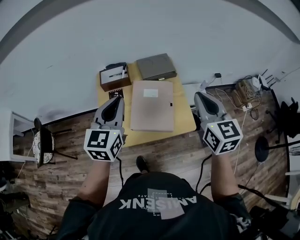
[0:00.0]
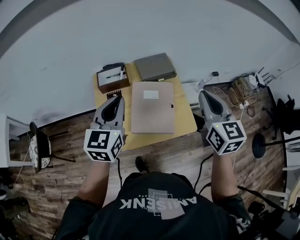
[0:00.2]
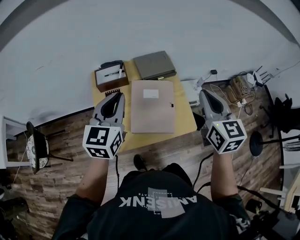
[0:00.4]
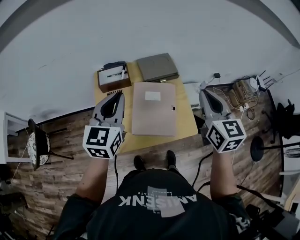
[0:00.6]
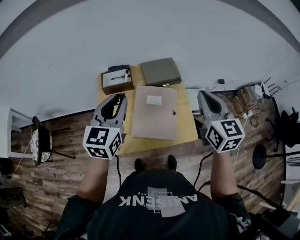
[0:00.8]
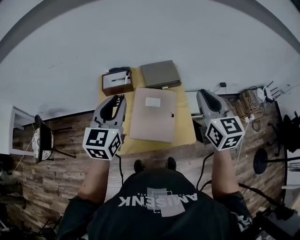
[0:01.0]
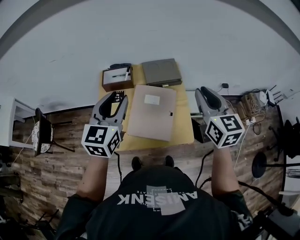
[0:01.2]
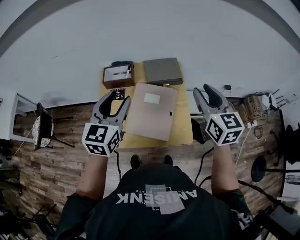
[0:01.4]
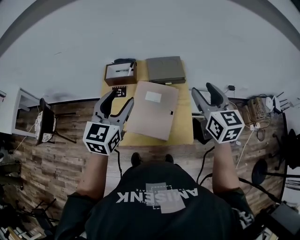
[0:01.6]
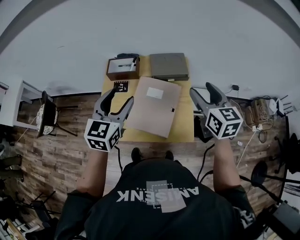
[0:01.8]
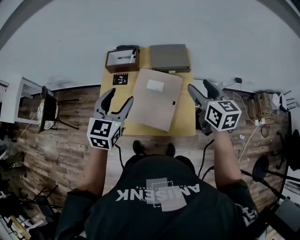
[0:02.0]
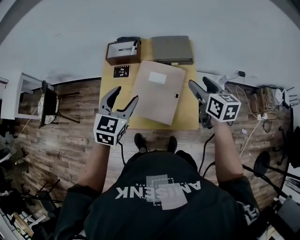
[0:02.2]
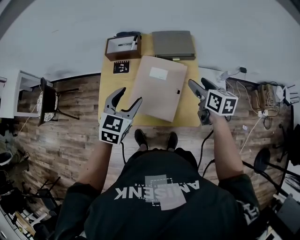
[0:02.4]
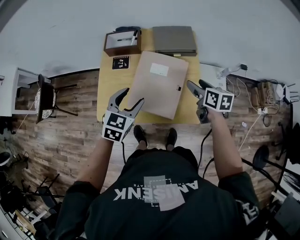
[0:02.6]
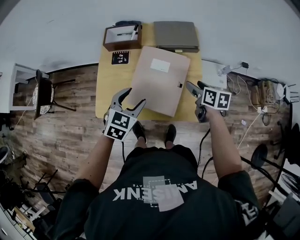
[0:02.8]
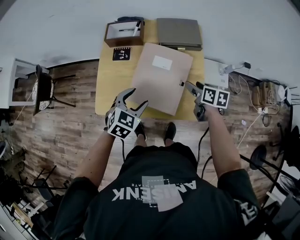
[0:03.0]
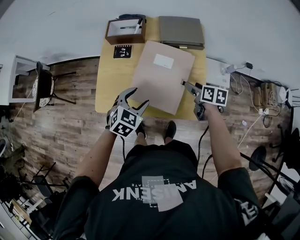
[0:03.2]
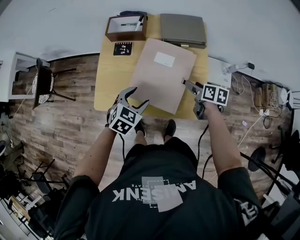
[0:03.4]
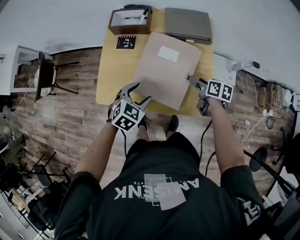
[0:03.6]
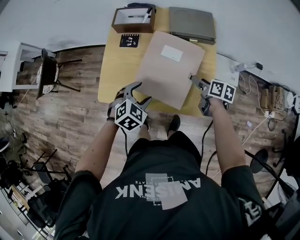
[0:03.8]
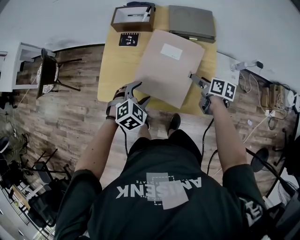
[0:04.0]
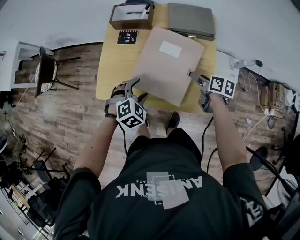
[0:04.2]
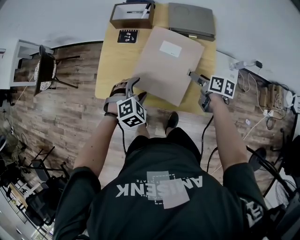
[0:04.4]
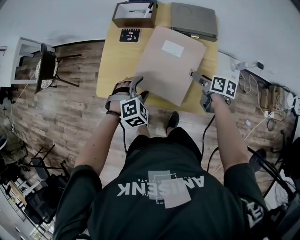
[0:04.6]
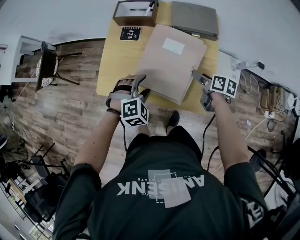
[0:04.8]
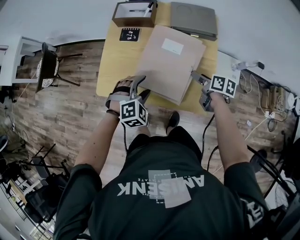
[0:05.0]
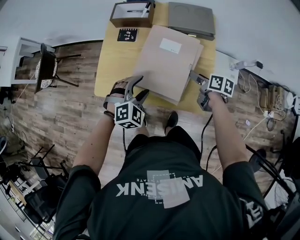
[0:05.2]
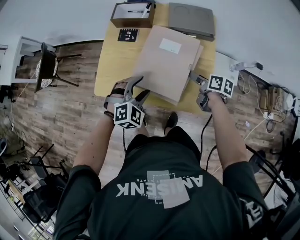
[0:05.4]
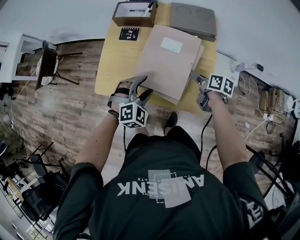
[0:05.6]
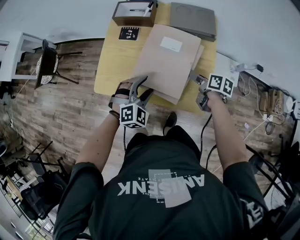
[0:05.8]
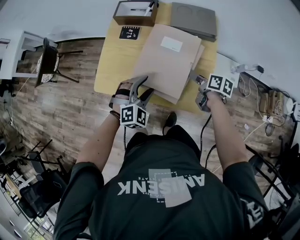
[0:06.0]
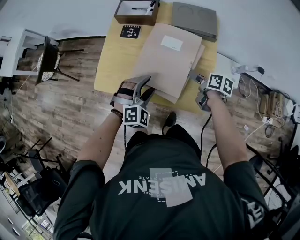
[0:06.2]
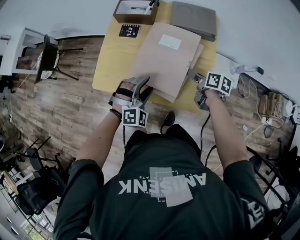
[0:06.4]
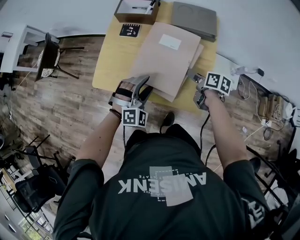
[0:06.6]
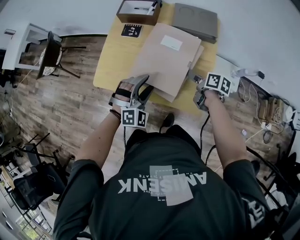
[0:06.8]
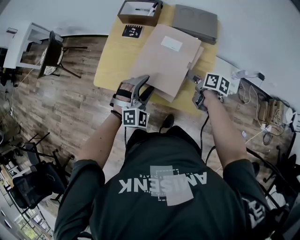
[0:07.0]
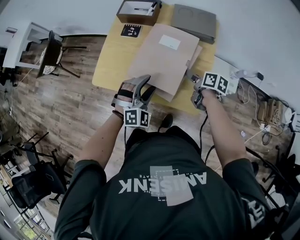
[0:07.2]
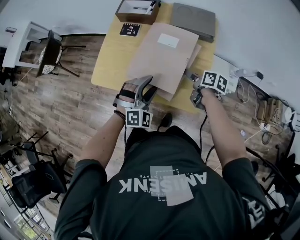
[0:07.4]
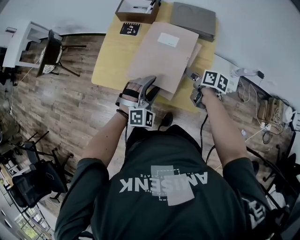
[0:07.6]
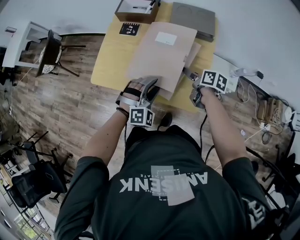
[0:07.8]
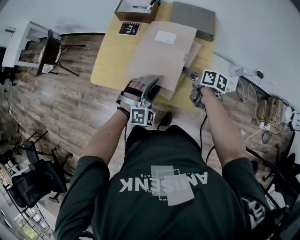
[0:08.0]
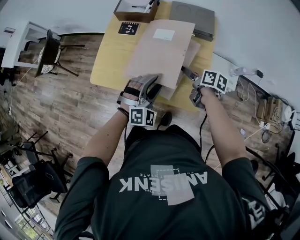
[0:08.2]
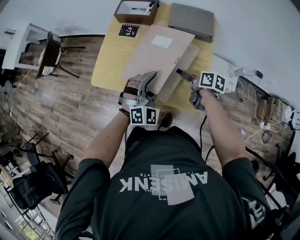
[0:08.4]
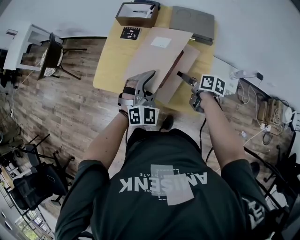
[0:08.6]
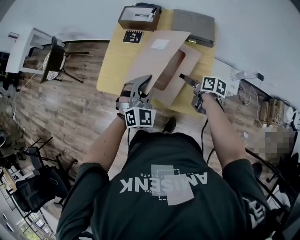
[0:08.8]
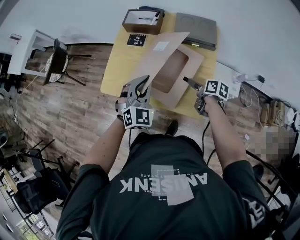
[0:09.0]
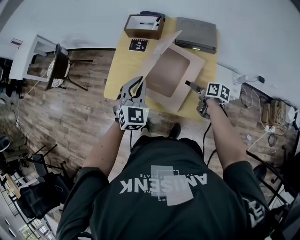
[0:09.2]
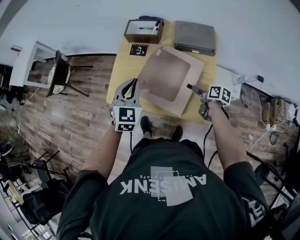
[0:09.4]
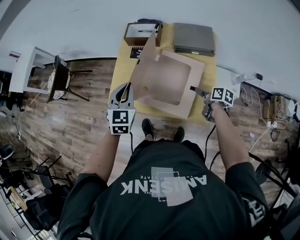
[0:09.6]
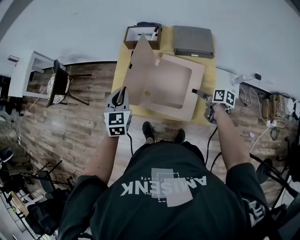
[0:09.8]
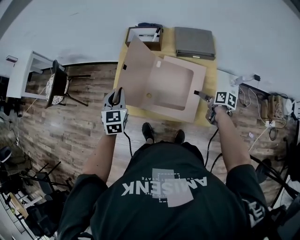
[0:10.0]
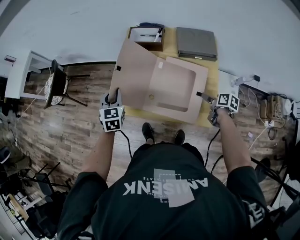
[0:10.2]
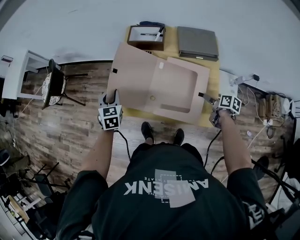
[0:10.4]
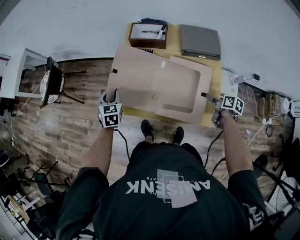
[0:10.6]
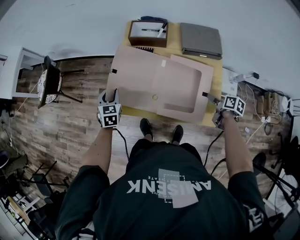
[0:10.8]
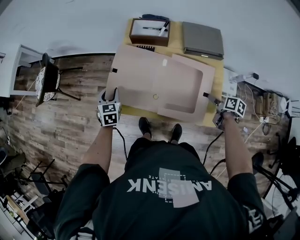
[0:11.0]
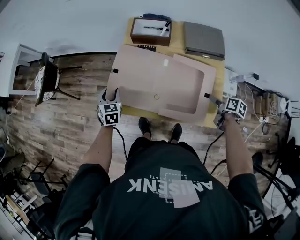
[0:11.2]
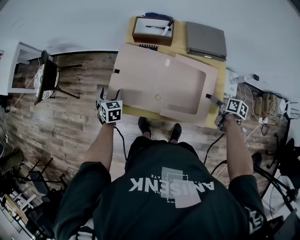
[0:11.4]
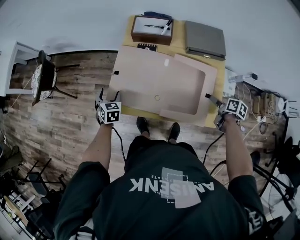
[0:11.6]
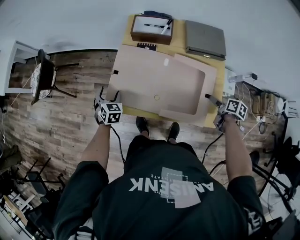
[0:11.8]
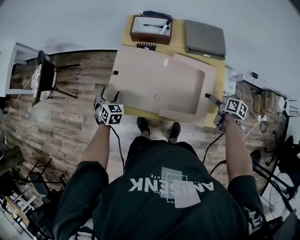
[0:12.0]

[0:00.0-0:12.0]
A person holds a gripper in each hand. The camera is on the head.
0:00.0 to 0:01.6: The right gripper goes about 10 cm forward, and opens. Meanwhile the left gripper changes place by approximately 5 cm, and opens up.
0:01.6 to 0:03.0: Both grippers travel together downward, approximately 25 cm. The left gripper angles its fingers downward, by some 30 degrees. Meanwhile the right gripper changes its angle by some 50 degrees.
0:03.0 to 0:04.4: Both grippers travel together downward, roughly 5 cm. The left gripper turns by about 30 degrees.
0:04.4 to 0:06.0: The left gripper moves roughly 5 cm.
0:06.0 to 0:07.6: The left gripper heads to the right, covering some 5 cm.
0:07.6 to 0:09.0: The left gripper heads upward, forward and to the left, covering roughly 10 cm, rotates some 30 degrees, and closes its fingers.
0:09.0 to 0:10.4: The left gripper shifts about 25 cm to the left and forward, and changes its angle by some 40 degrees.
0:10.4 to 0:12.0: The left gripper heads downward, covering some 10 cm, and opens its fingers.

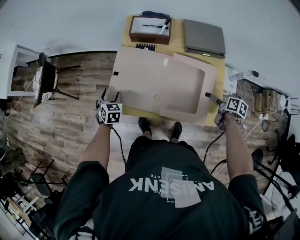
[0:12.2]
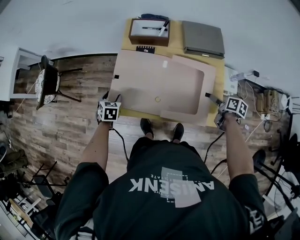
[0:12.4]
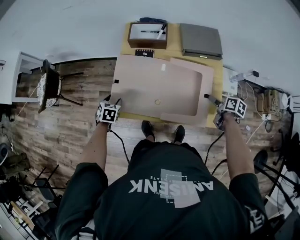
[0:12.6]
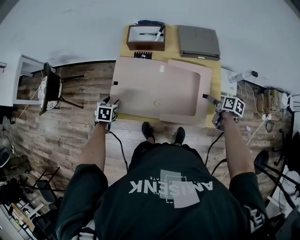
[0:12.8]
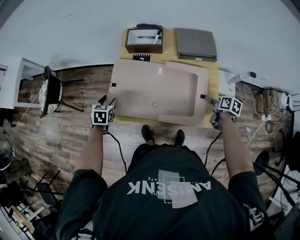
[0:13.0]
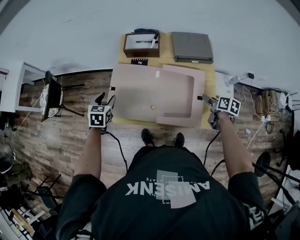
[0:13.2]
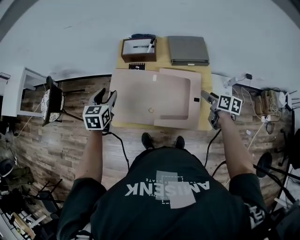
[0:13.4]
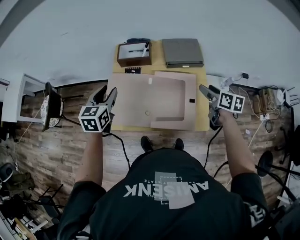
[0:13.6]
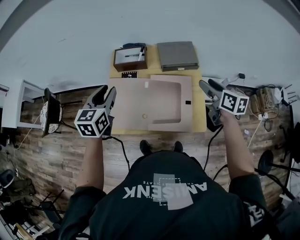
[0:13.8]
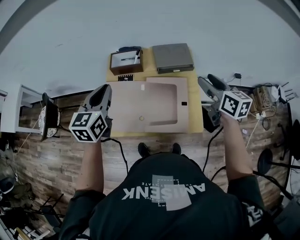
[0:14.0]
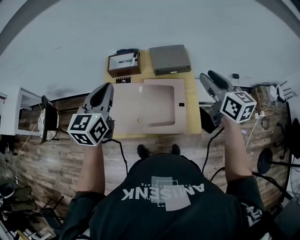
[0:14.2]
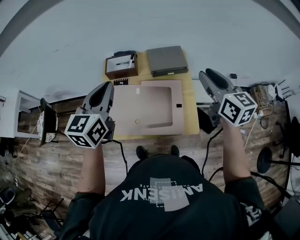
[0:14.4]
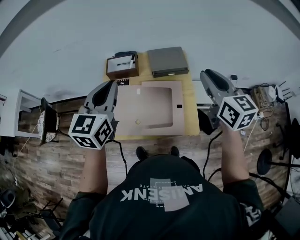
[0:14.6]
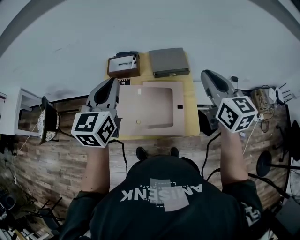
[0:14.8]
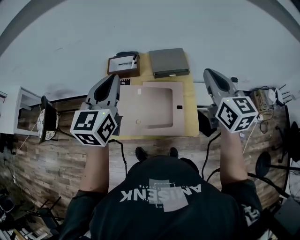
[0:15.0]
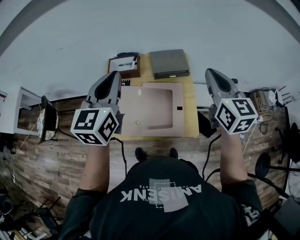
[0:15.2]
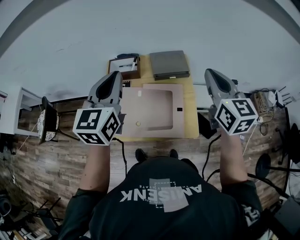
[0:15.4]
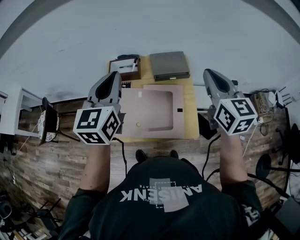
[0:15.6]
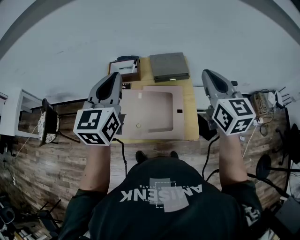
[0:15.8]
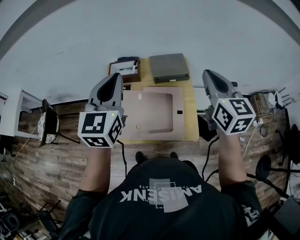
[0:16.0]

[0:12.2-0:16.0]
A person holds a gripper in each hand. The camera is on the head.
0:12.2 to 0:13.4: The left gripper moves upward and to the right, some 20 cm, and rotates about 20 degrees. The right gripper goes some 10 cm upward.
0:13.4 to 0:14.8: The right gripper goes approximately 30 cm upward, rotates about 50 degrees, and closes its fingers, while the left gripper shifts about 30 cm upward and to the right, swivels some 30 degrees, and closes up.
0:14.8 to 0:16.0: The grippers stay close to where they were, moving slightly.

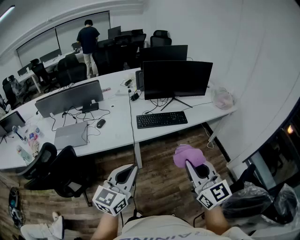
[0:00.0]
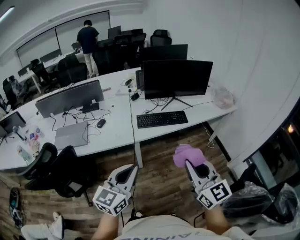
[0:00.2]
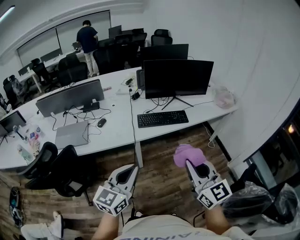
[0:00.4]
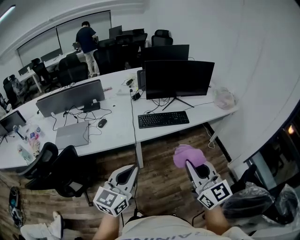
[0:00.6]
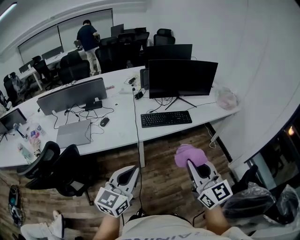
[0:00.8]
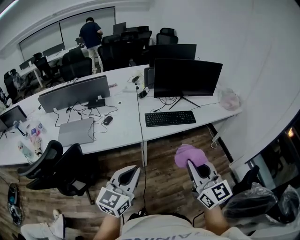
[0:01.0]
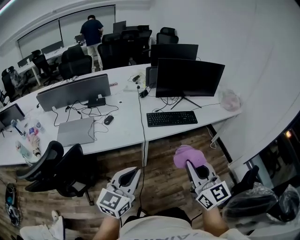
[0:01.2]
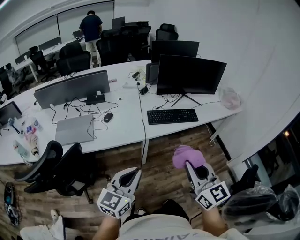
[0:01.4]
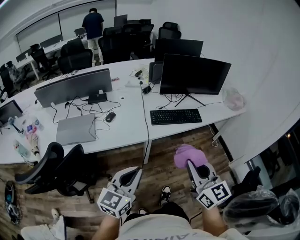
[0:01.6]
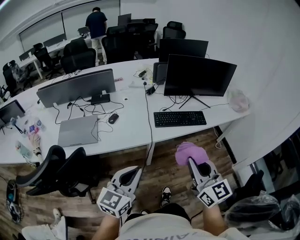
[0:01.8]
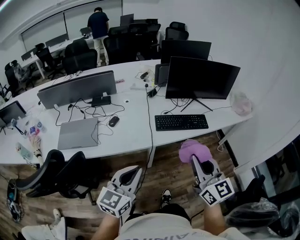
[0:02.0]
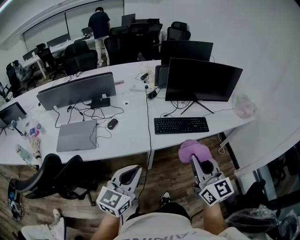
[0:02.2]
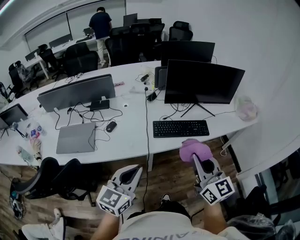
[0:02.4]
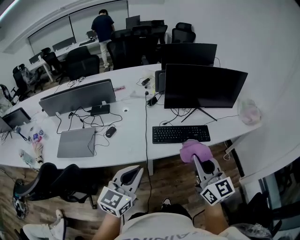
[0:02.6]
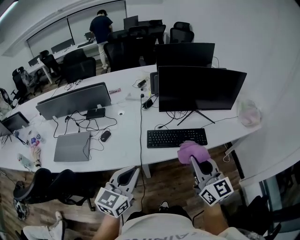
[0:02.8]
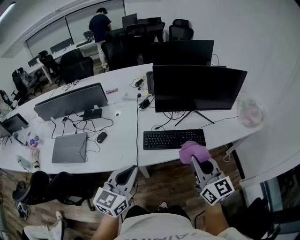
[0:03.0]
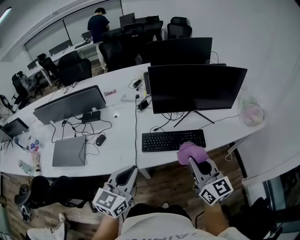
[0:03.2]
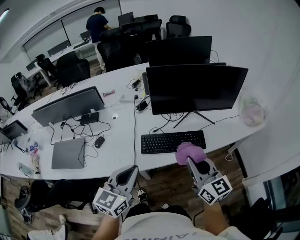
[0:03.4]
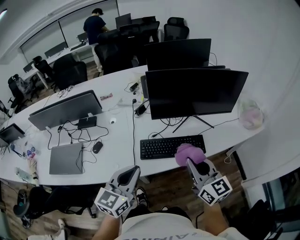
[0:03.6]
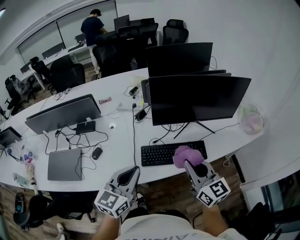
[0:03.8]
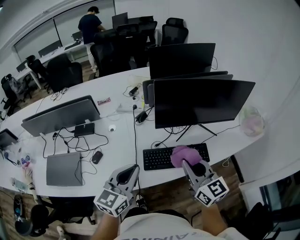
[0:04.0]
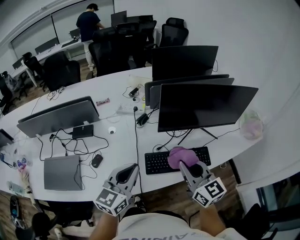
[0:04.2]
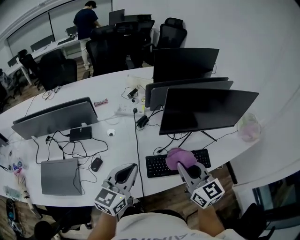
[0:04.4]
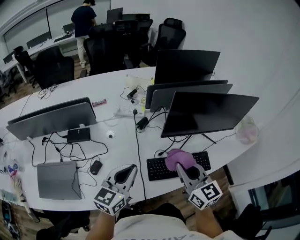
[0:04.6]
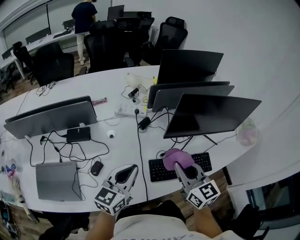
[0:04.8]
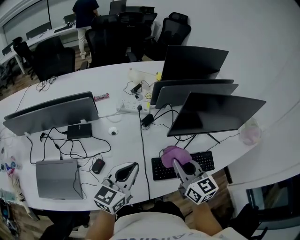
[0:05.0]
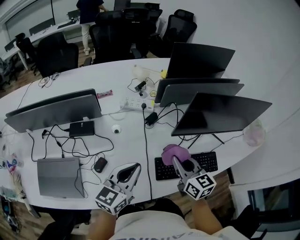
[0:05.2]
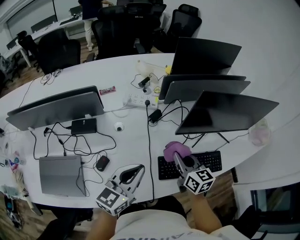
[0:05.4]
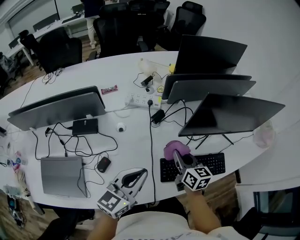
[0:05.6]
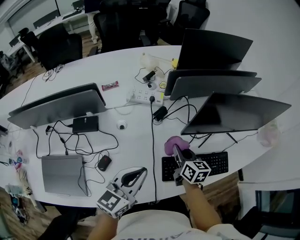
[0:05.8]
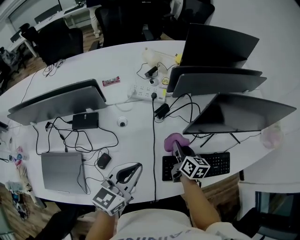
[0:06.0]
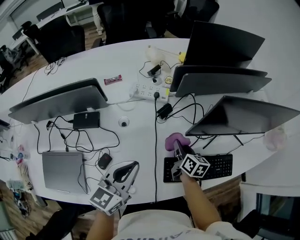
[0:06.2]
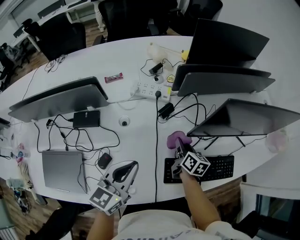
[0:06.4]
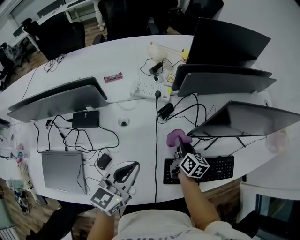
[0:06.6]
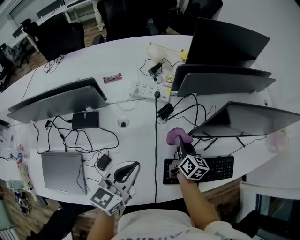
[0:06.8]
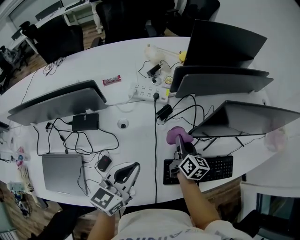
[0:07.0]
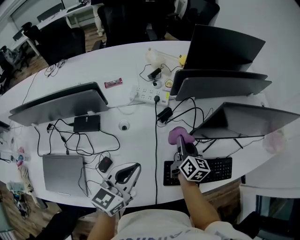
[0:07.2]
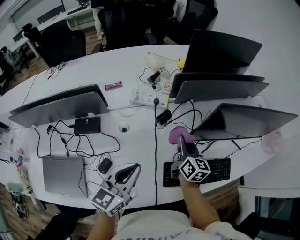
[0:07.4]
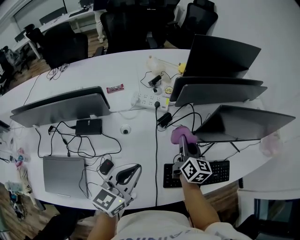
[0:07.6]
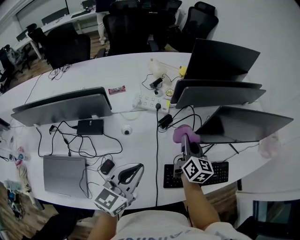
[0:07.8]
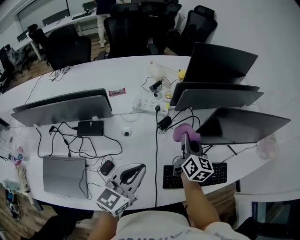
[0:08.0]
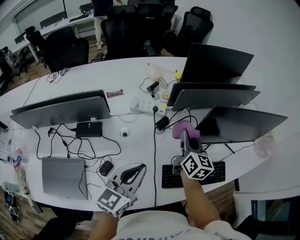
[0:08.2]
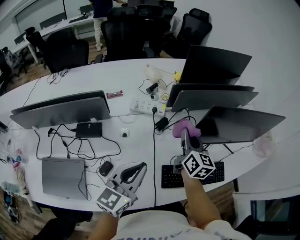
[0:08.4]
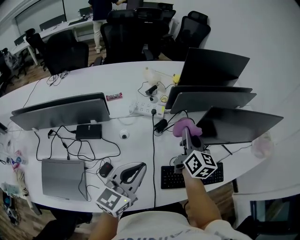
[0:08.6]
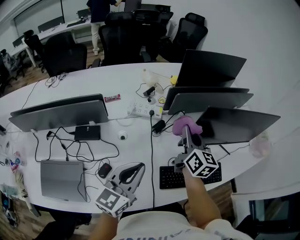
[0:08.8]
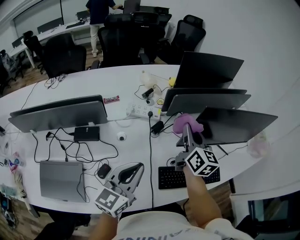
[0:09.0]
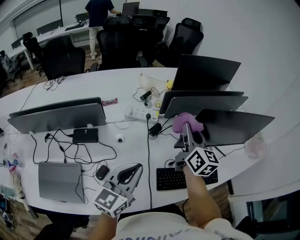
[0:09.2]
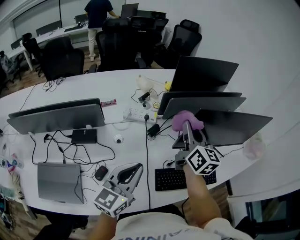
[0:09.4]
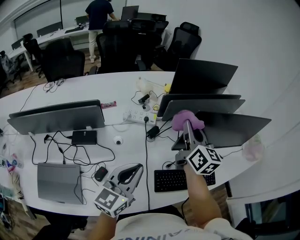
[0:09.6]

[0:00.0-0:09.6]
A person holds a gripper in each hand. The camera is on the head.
0:00.0 to 0:01.6: The grippers both shift to the left by about 10 cm.
0:01.6 to 0:03.2: Both grippers move forward and to the right, some 30 cm.
0:03.2 to 0:04.8: The left gripper travels forward and to the left by about 25 cm. Meanwhile the right gripper heads to the left and forward, covering roughly 25 cm.
0:04.8 to 0:06.4: The left gripper moves forward, roughly 5 cm; the right gripper moves downward and forward, about 30 cm, and swivels some 40 degrees.
0:06.4 to 0:08.0: The right gripper moves upward, about 15 cm, and turns by approximately 30 degrees.
0:08.0 to 0:09.6: The left gripper moves some 5 cm, while the right gripper moves upward, roughly 15 cm.
